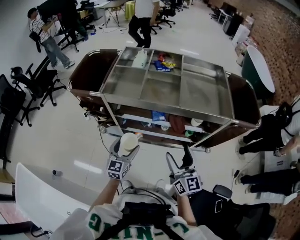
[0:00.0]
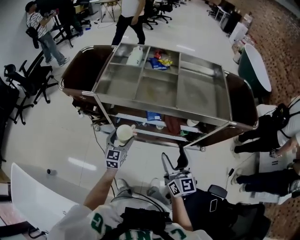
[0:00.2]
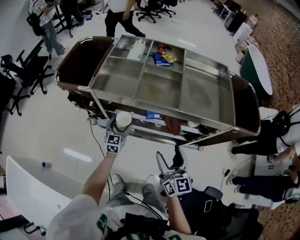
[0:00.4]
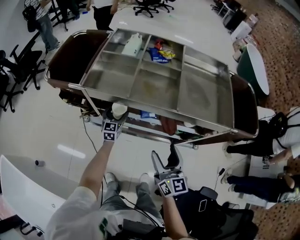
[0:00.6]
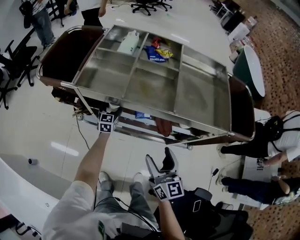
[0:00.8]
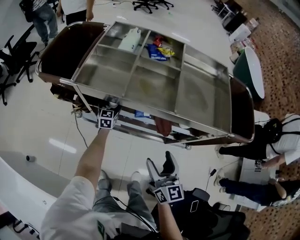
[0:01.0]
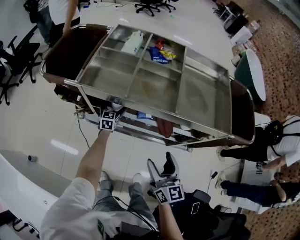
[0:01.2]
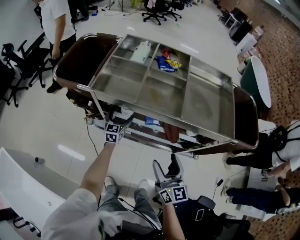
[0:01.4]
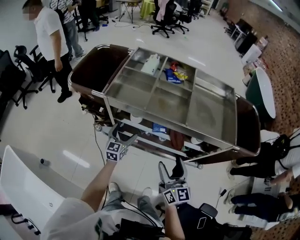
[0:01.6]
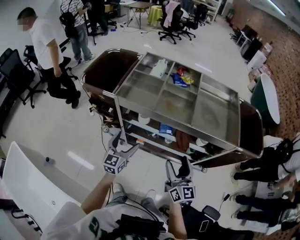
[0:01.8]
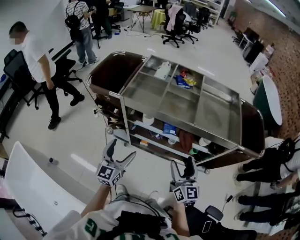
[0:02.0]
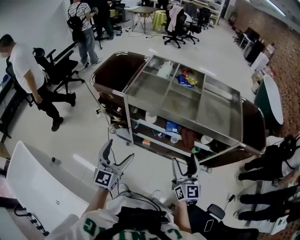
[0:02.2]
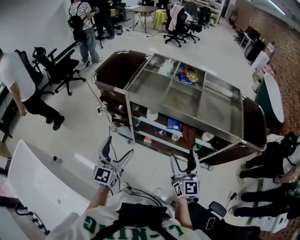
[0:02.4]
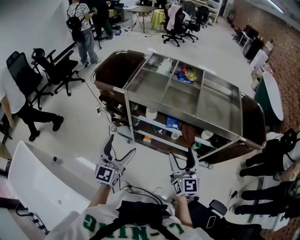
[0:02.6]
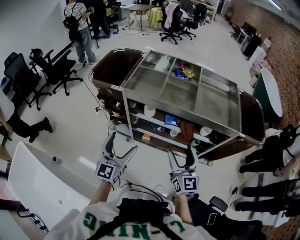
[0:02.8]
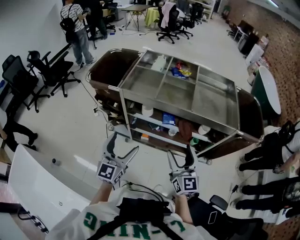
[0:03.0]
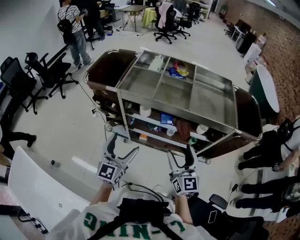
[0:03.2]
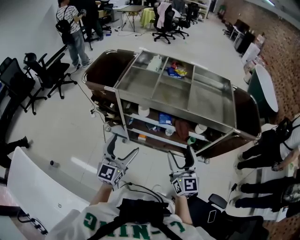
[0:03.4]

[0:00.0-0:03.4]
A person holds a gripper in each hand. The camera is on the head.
0:00.0 to 0:01.6: The right gripper moves some 5 cm. Meanwhile the left gripper is displaced forward and downward by approximately 15 cm.
0:01.6 to 0:03.4: The right gripper is displaced backward by roughly 5 cm. The left gripper travels backward and upward by about 30 cm.

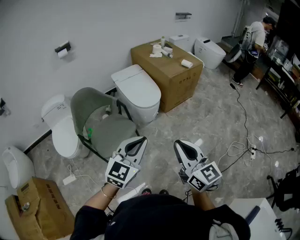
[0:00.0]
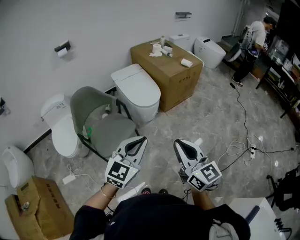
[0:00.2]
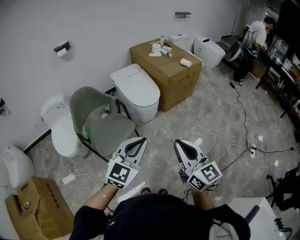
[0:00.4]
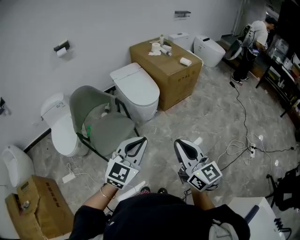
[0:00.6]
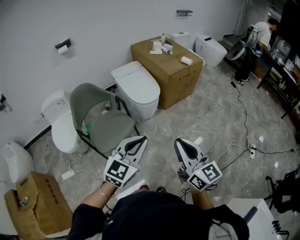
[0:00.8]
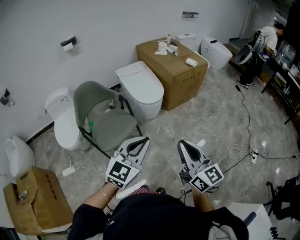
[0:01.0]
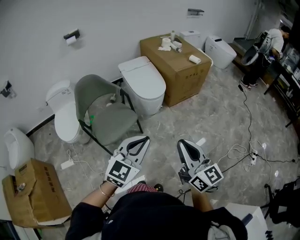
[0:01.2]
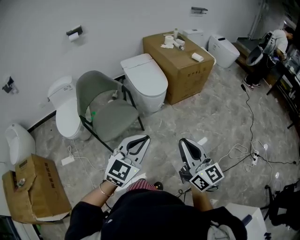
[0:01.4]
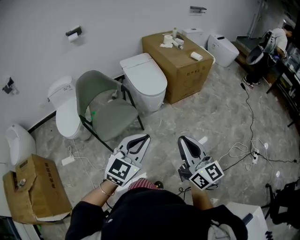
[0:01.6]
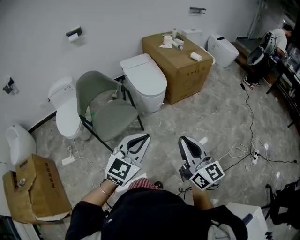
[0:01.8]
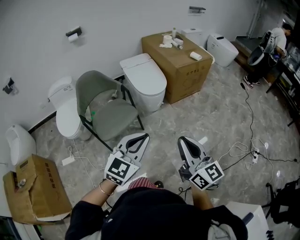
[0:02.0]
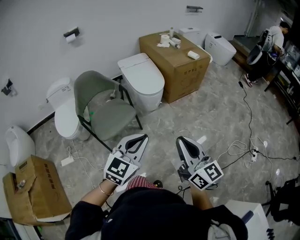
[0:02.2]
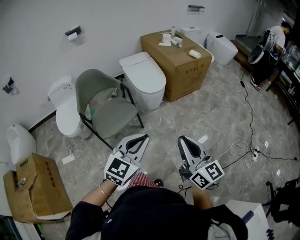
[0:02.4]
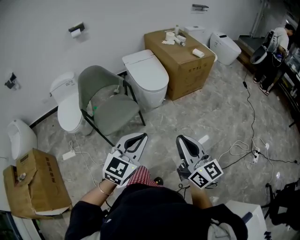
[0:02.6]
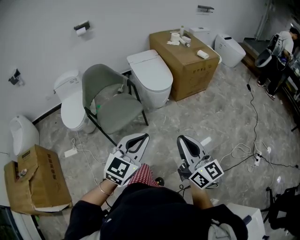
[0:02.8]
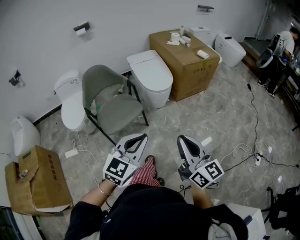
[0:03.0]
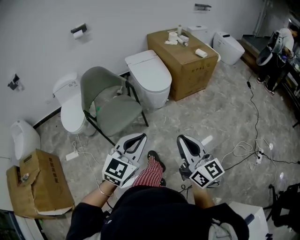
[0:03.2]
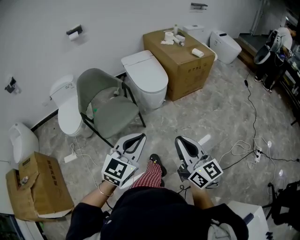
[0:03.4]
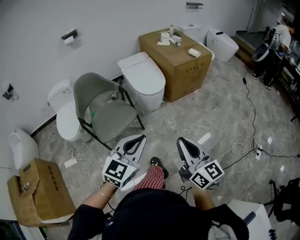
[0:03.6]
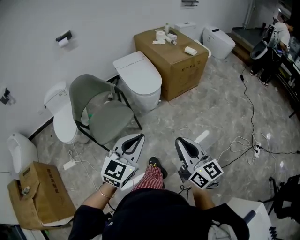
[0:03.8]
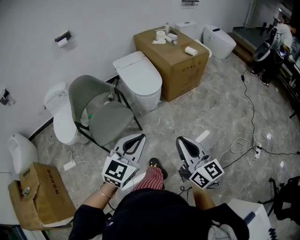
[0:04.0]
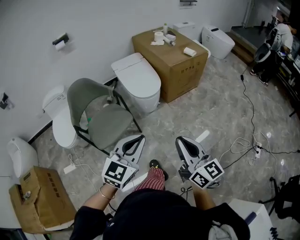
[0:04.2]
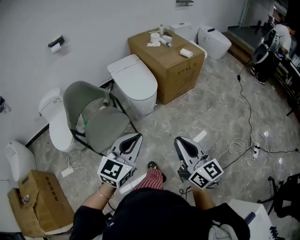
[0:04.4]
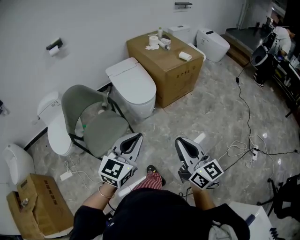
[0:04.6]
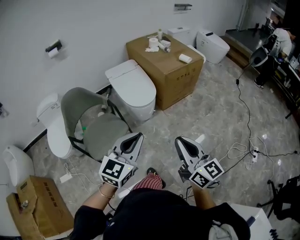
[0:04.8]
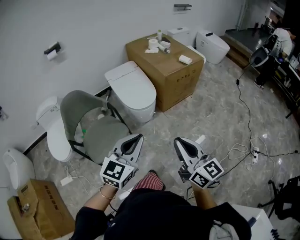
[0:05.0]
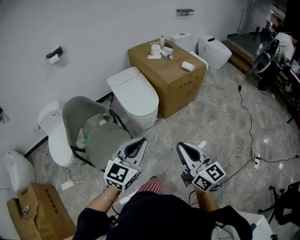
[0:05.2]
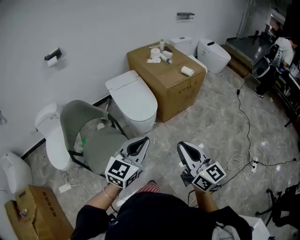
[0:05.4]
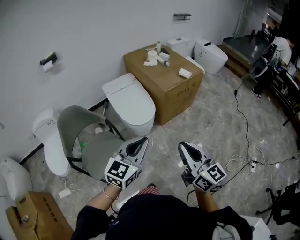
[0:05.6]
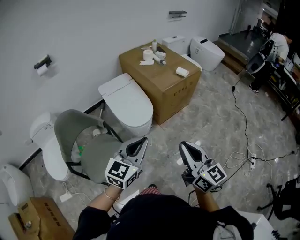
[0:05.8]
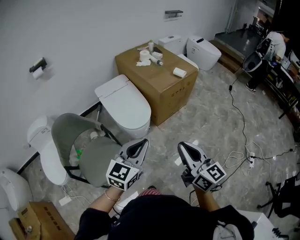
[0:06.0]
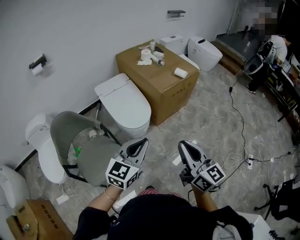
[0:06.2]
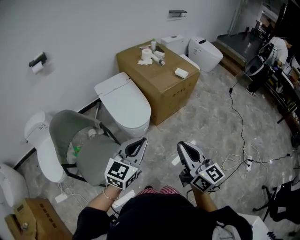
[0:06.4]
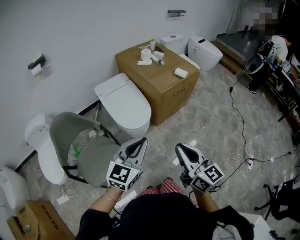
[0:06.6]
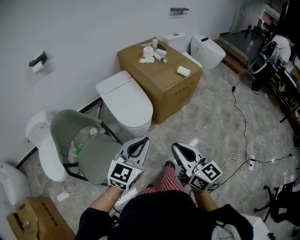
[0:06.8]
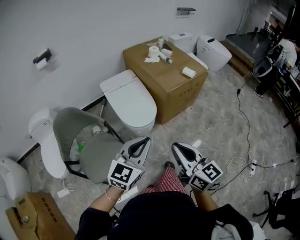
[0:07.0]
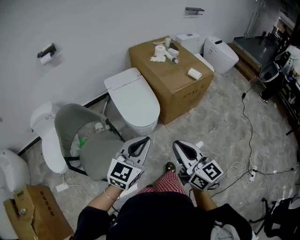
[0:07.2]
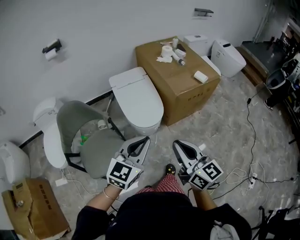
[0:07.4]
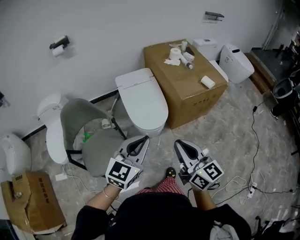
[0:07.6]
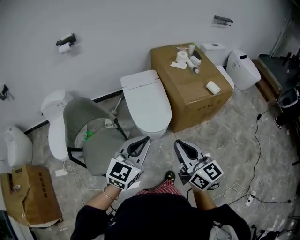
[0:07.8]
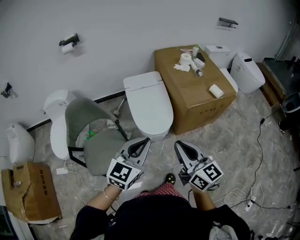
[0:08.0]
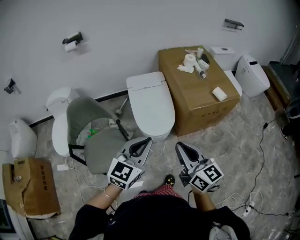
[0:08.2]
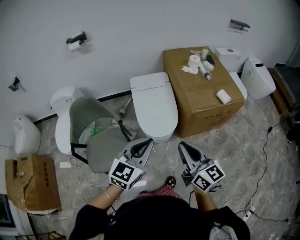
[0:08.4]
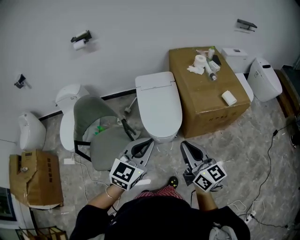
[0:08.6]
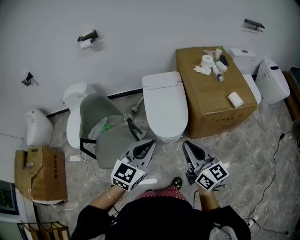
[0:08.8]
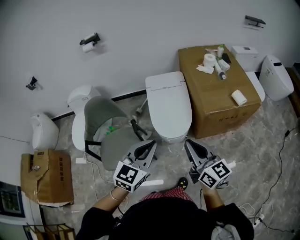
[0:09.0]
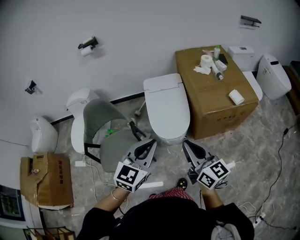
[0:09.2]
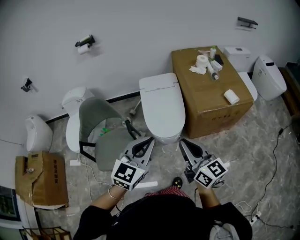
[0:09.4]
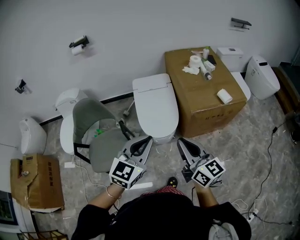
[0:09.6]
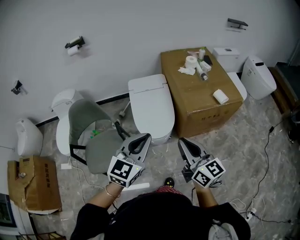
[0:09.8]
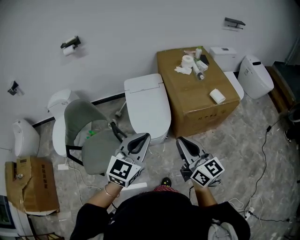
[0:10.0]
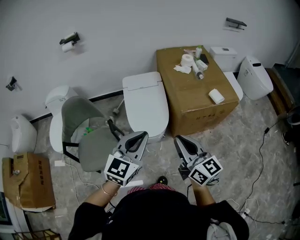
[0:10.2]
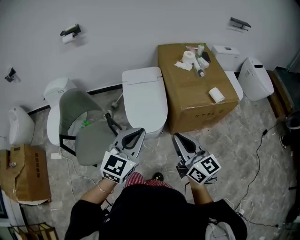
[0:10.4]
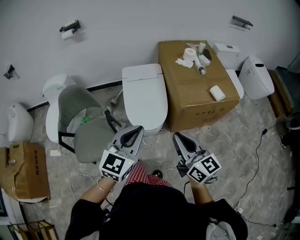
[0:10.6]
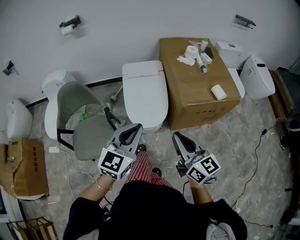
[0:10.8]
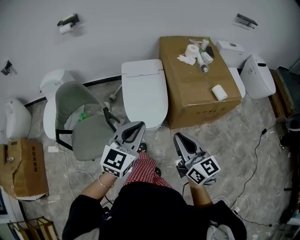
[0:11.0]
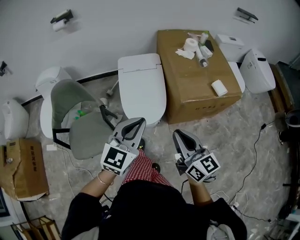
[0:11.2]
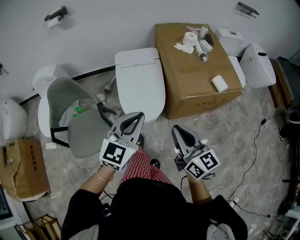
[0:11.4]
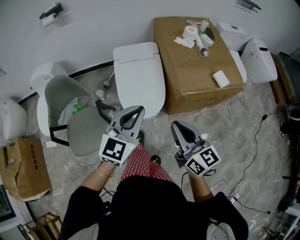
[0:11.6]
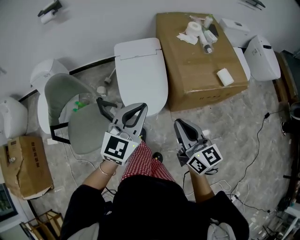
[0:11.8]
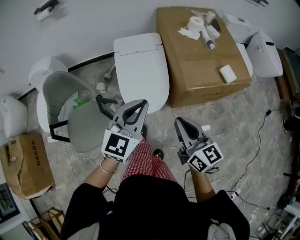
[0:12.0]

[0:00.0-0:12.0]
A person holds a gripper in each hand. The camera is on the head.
0:00.0 to 0:01.6: The two grippers go approximately 5 cm to the right.
0:01.6 to 0:03.0: The grippers make only small movements.
0:03.0 to 0:04.4: The two grippers go about 10 cm forward.
0:04.4 to 0:06.0: Both grippers travel together forward, roughly 20 cm.
0:06.0 to 0:07.6: The grippers both shift forward by roughly 10 cm.
0:07.6 to 0:09.0: The right gripper is displaced forward and to the right by roughly 10 cm; the left gripper goes some 5 cm forward.
0:09.0 to 0:10.4: The left gripper moves to the right, roughly 5 cm.
0:10.4 to 0:12.0: Both grippers move forward and downward, roughly 15 cm.

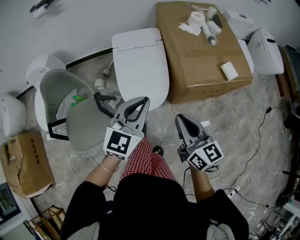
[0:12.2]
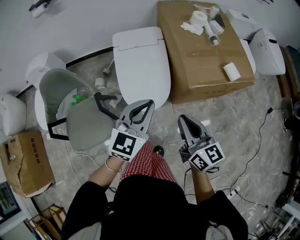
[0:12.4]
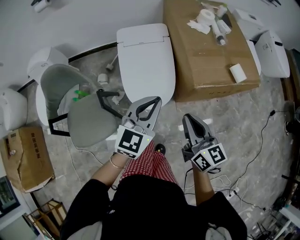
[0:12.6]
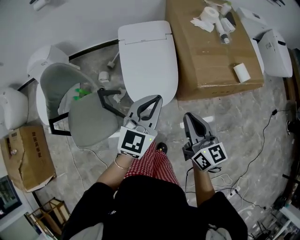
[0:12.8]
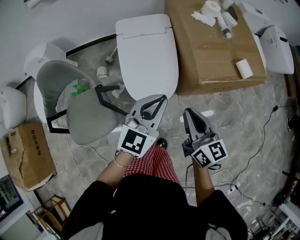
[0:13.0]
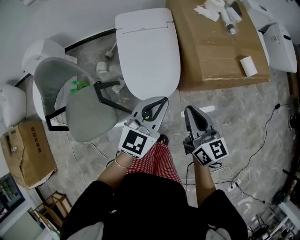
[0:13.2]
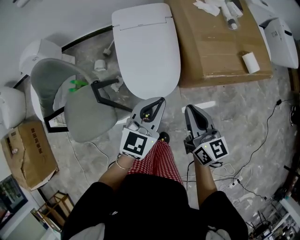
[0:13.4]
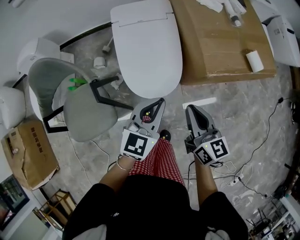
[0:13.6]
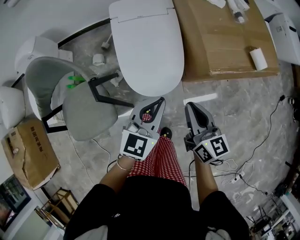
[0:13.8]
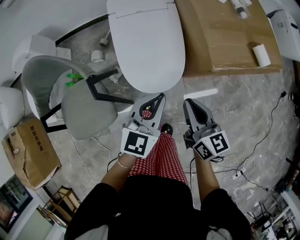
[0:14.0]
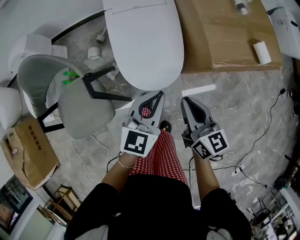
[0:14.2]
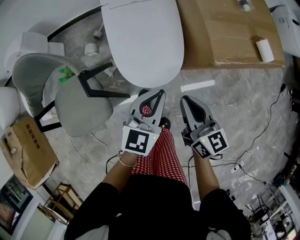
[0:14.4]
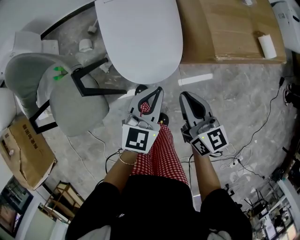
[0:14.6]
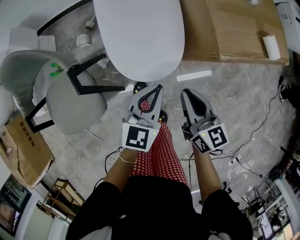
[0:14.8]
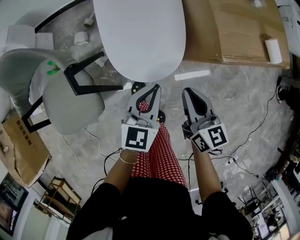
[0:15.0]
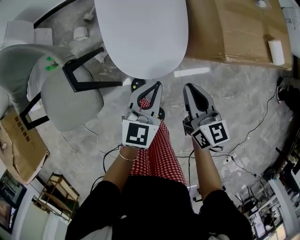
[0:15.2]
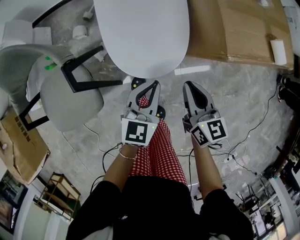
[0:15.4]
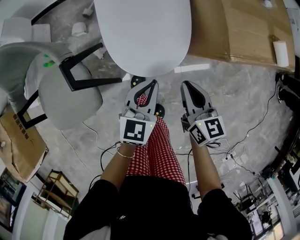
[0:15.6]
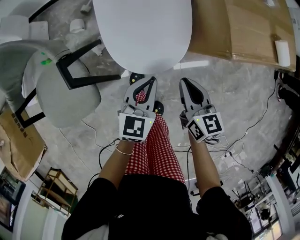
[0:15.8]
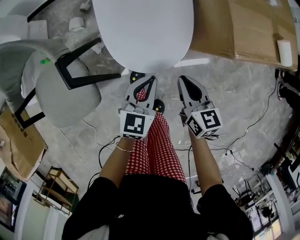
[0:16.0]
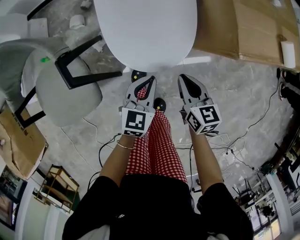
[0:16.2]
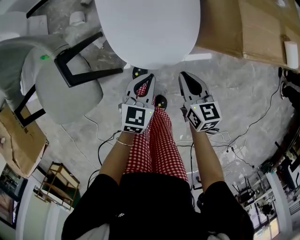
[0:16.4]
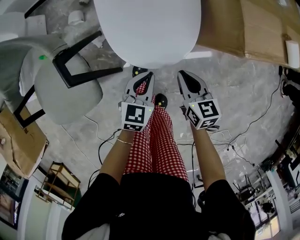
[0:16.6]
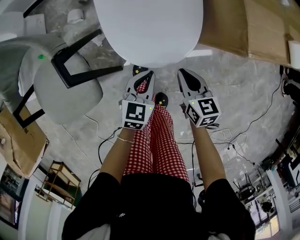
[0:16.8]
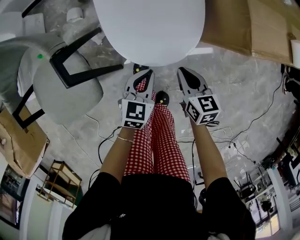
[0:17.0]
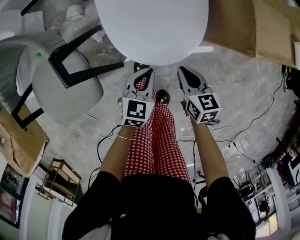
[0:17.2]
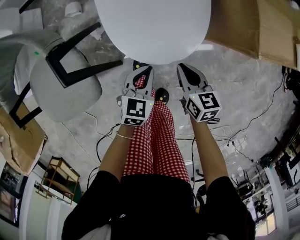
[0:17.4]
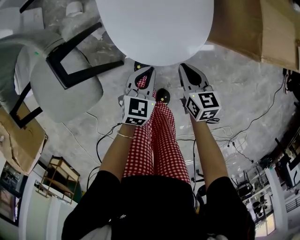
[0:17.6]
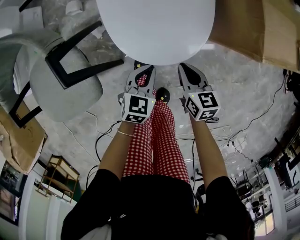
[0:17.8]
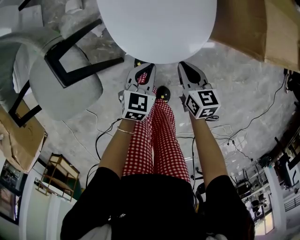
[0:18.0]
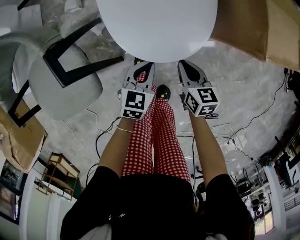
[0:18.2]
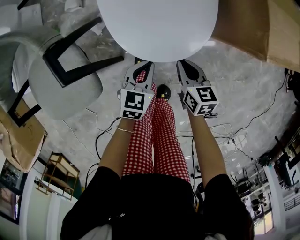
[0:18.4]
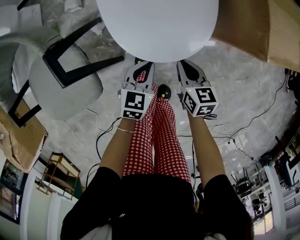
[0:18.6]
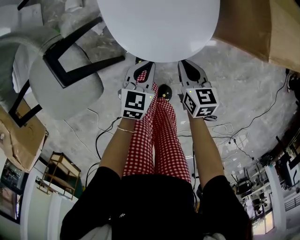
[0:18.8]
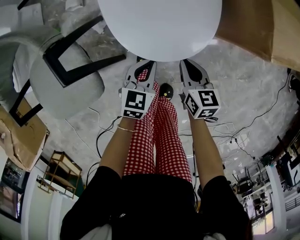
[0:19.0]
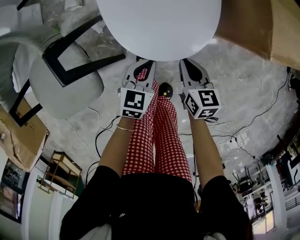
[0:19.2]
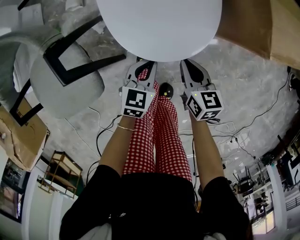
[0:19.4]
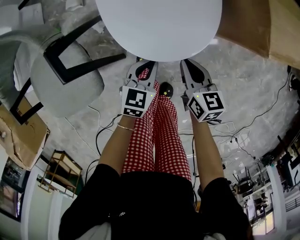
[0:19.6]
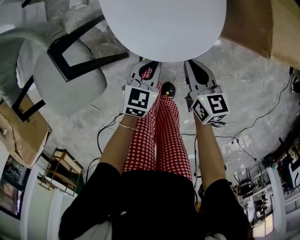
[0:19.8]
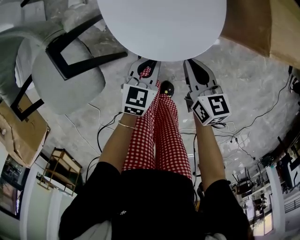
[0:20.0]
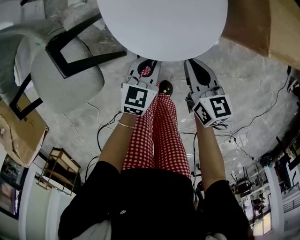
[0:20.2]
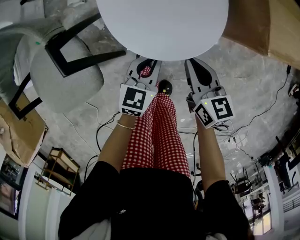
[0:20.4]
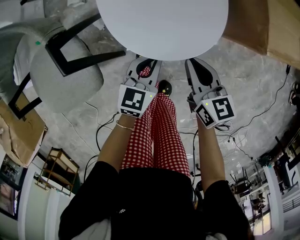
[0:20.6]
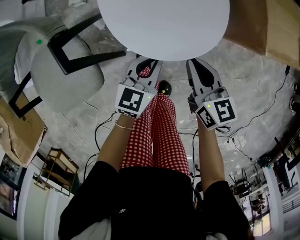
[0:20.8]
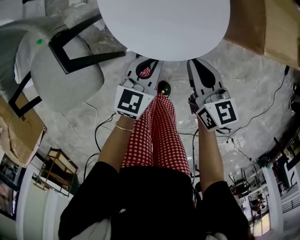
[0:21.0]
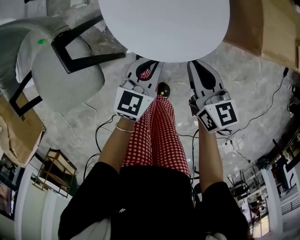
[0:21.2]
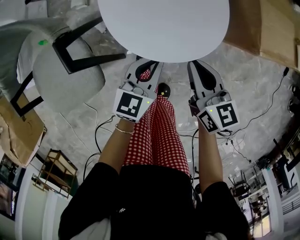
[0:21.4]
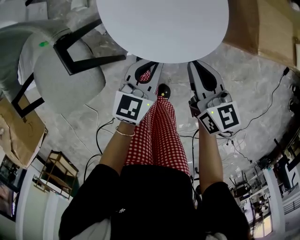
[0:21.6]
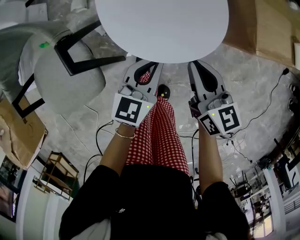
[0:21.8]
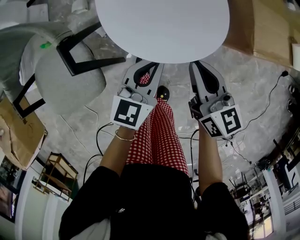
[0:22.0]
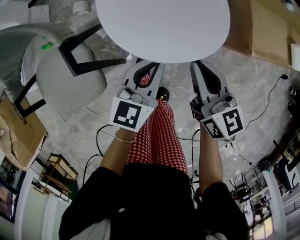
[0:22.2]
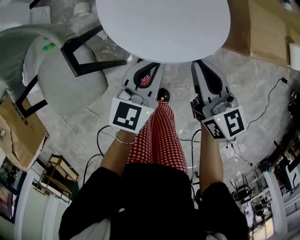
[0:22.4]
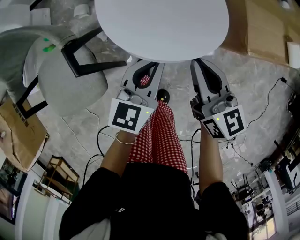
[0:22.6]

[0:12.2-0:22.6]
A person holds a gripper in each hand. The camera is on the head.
0:12.2 to 0:13.6: The right gripper shifts about 15 cm downward and forward; the left gripper heads downward, covering some 15 cm.
0:13.6 to 0:15.2: Both grippers travel together downward, approximately 15 cm.
0:15.2 to 0:16.6: Both grippers travel together downward, roughly 15 cm.
0:16.6 to 0:18.2: The grippers both shift downward by roughly 5 cm.
0:18.2 to 0:19.6: The grippers make only small movements.
0:19.6 to 0:21.2: The two grippers go approximately 10 cm upward.
0:21.2 to 0:22.6: Both grippers travel together upward, roughly 10 cm.
